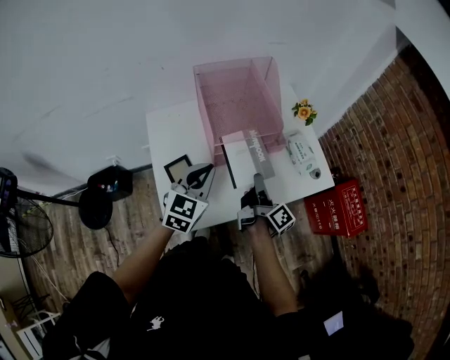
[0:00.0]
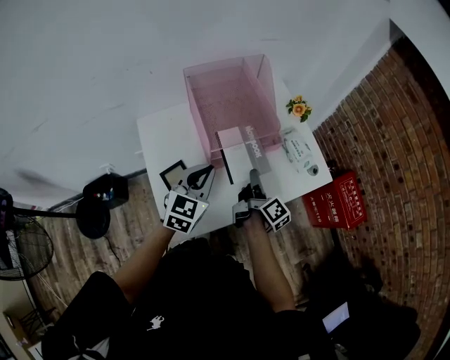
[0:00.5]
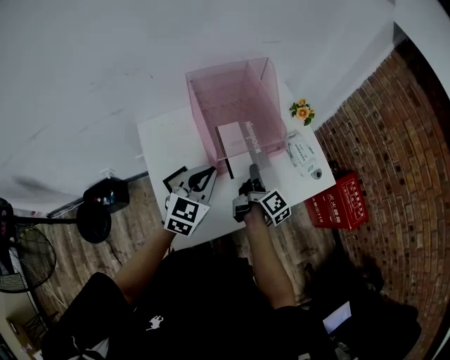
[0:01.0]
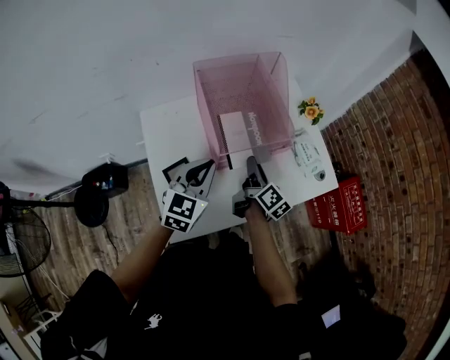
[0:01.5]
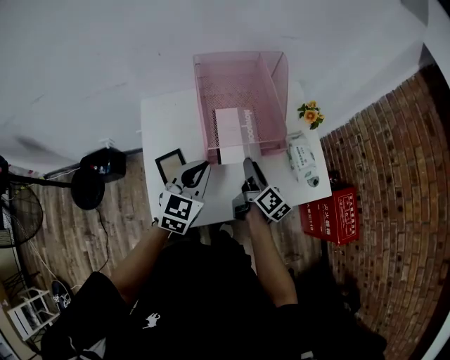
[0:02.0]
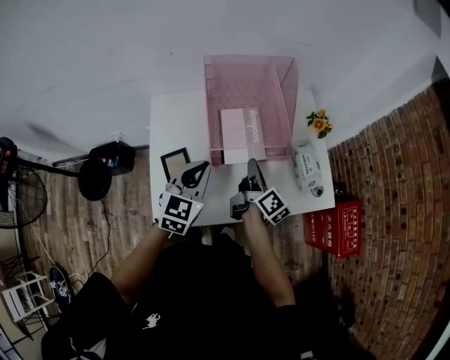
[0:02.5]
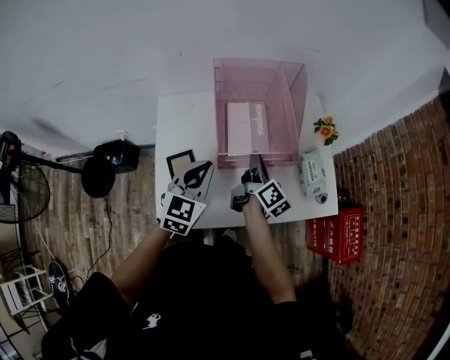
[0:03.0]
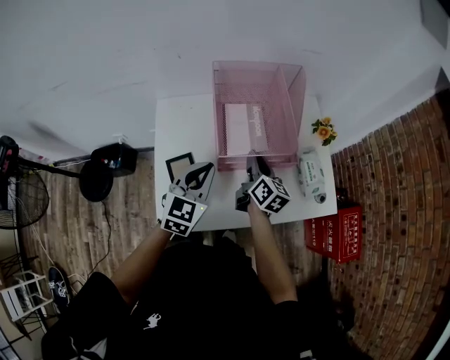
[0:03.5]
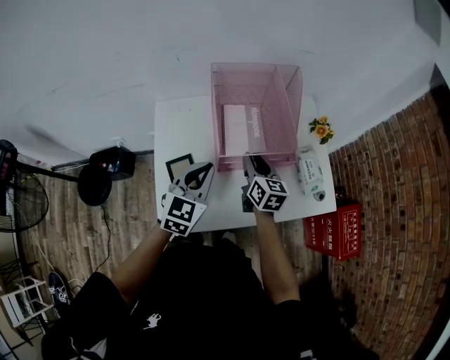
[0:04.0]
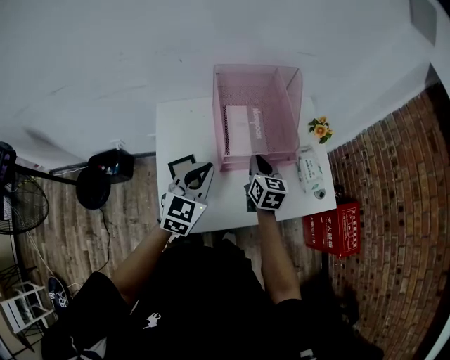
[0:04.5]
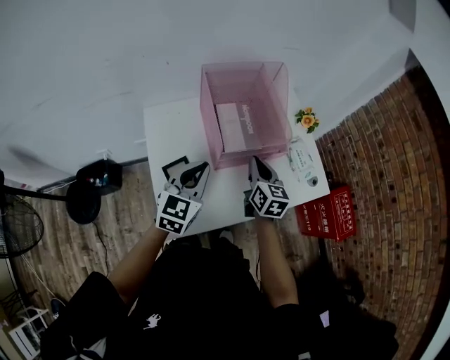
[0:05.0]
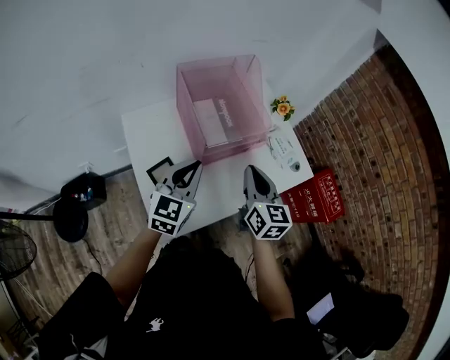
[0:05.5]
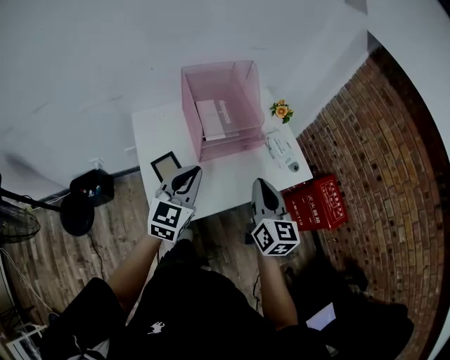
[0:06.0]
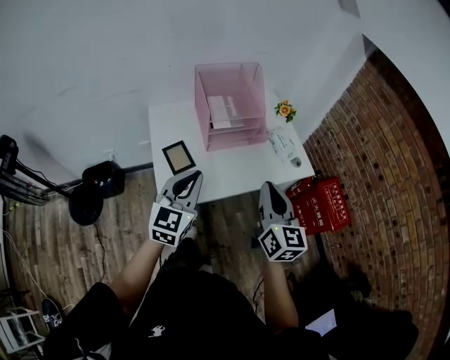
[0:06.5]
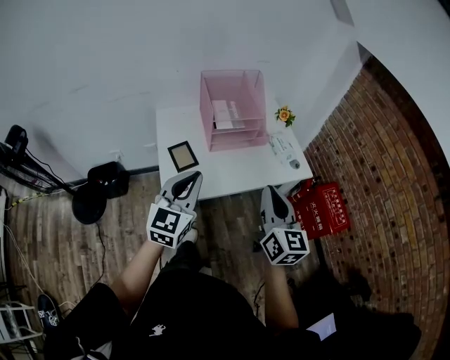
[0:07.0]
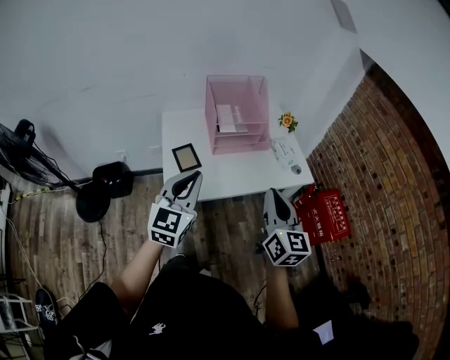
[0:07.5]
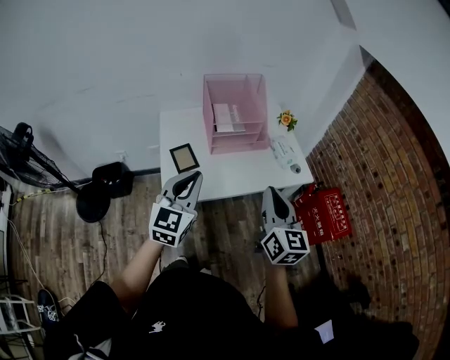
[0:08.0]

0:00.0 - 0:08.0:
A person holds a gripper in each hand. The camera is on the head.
0:00.0 - 0:02.0: The right gripper is displaced forward by some 5 cm, rotates roughly 30 degrees, and opens its fingers.
0:02.0 - 0:04.0: The right gripper ends up about 5 cm from where it was, swivels about 40 degrees, and closes, then reopens.
0:04.0 - 0:06.0: The right gripper shifts about 25 cm backward and upward, swivels roughly 20 degrees, and closes up; the left gripper travels backward and upward by some 10 cm.
0:06.0 - 0:08.0: Both grippers move backward, approximately 15 cm.

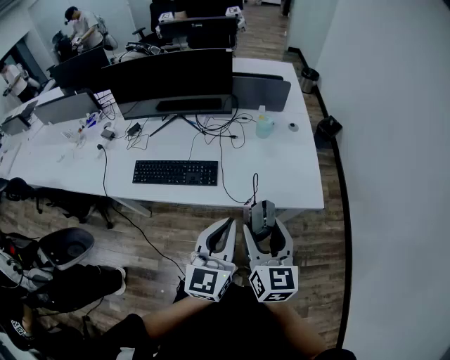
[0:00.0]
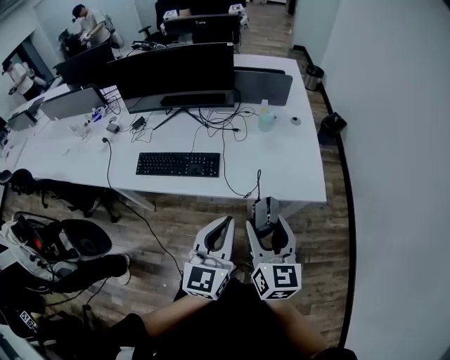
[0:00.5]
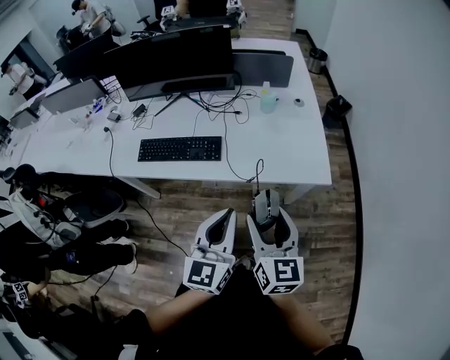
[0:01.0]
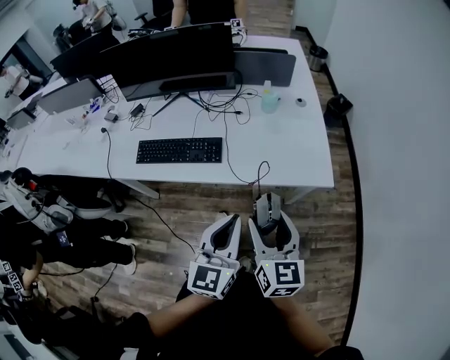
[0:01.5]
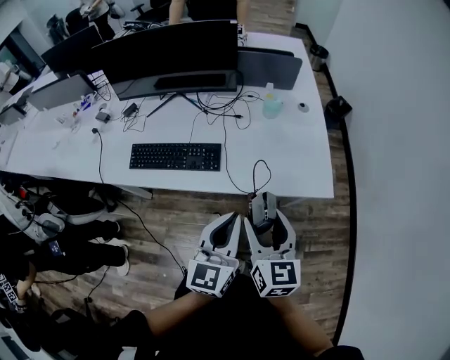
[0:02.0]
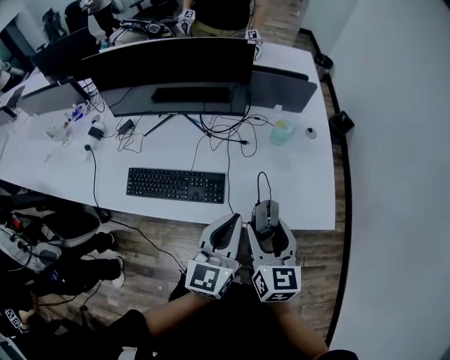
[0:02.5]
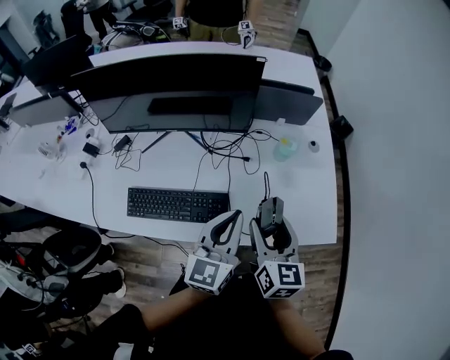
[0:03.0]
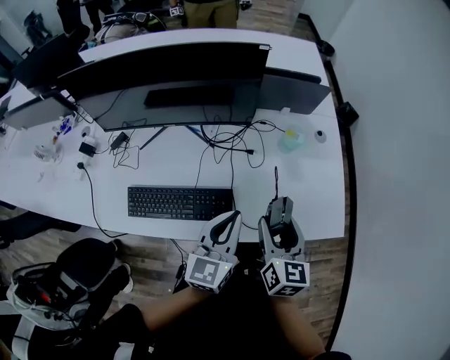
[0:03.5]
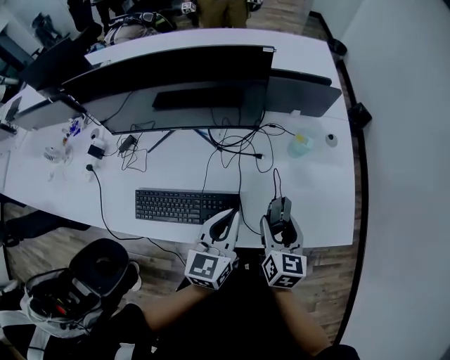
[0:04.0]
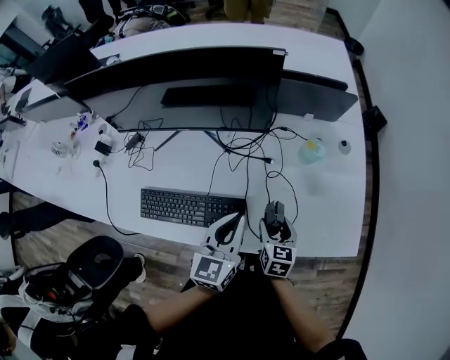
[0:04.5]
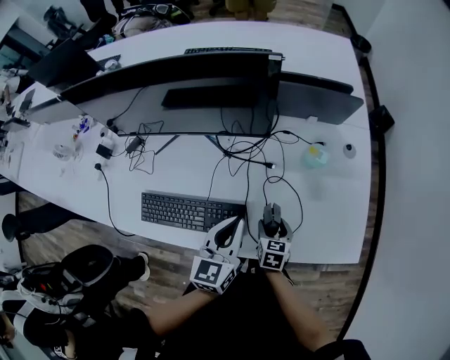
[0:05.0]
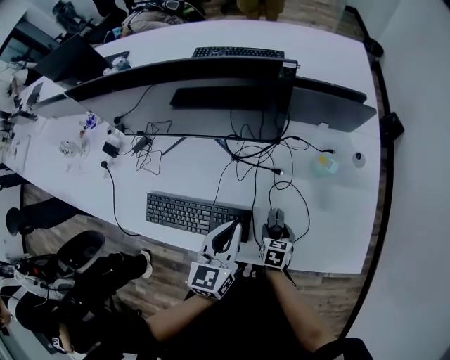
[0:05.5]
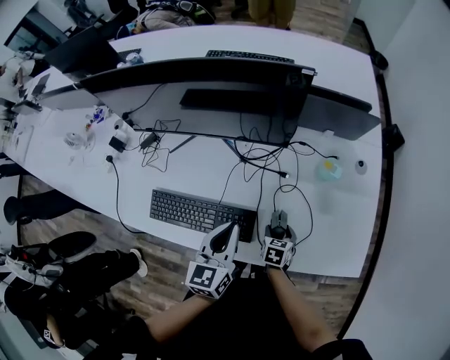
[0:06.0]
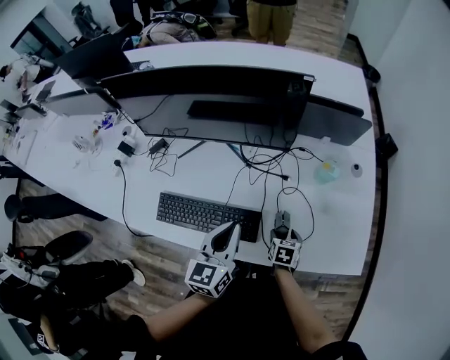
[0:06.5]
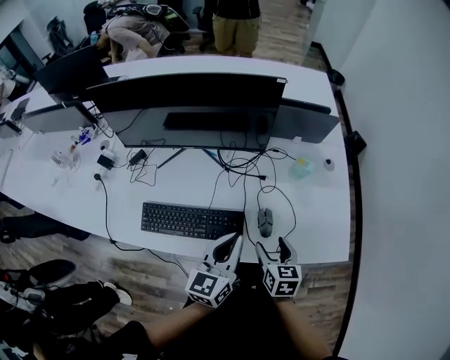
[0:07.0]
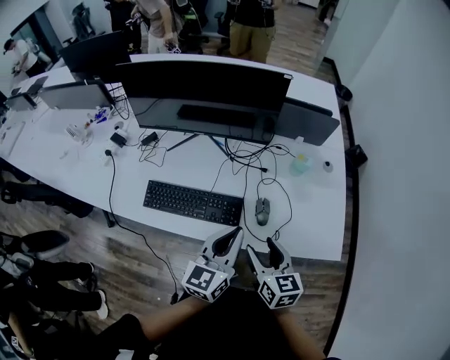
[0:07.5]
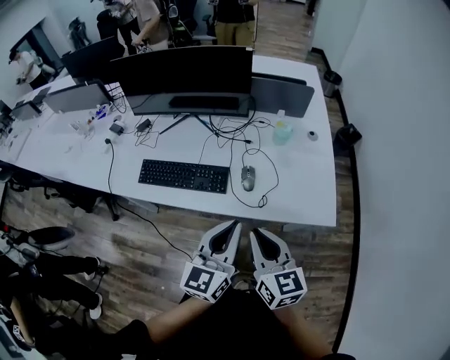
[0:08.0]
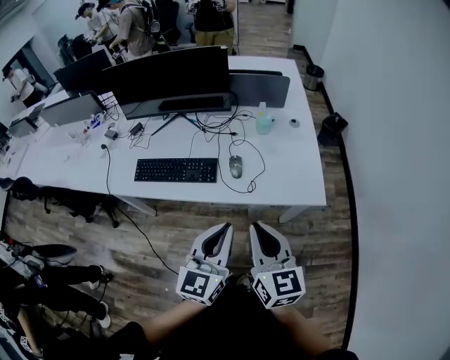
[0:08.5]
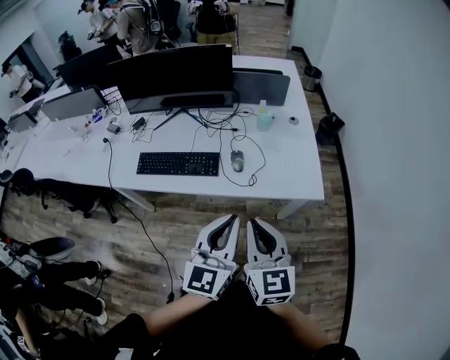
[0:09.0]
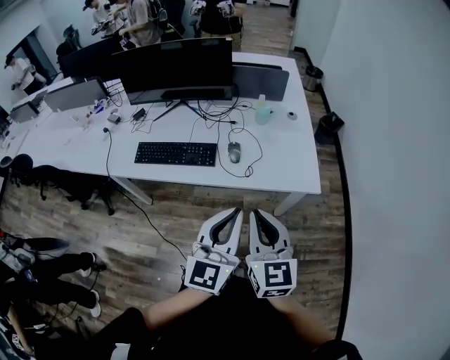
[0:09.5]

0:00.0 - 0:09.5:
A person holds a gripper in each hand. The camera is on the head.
0:00.0 - 0:02.0: The right gripper changes place by some 5 cm; the left gripper moves about 5 cm.
0:02.0 - 0:04.0: The left gripper moves forward and to the left, some 30 cm, while the right gripper goes approximately 25 cm forward and downward.
0:04.0 - 0:05.5: The right gripper moves downward, some 20 cm, and rotates some 30 degrees, while the left gripper ends up about 5 cm from where it was.
0:05.5 - 0:07.5: The right gripper shifts roughly 30 cm upward and backward, and tilts its fingers some 30 degrees upward. The left gripper goes some 15 cm backward and upward.
0:07.5 - 0:09.5: The right gripper moves backward, upward and to the right, approximately 30 cm, swivels approximately 30 degrees, and closes up; the left gripper is displaced backward and to the right by some 30 cm.

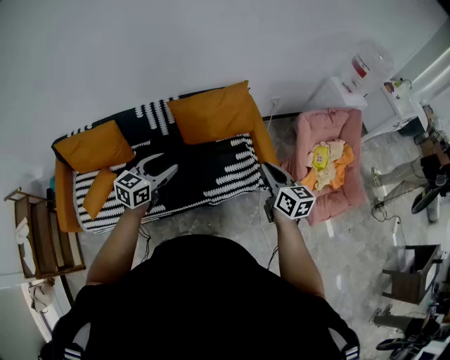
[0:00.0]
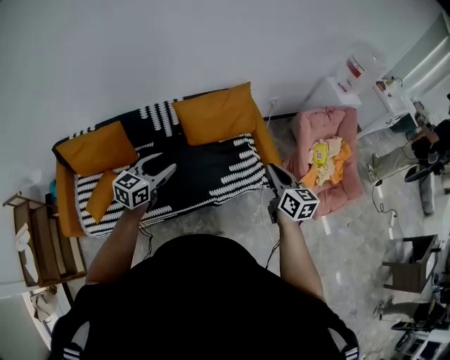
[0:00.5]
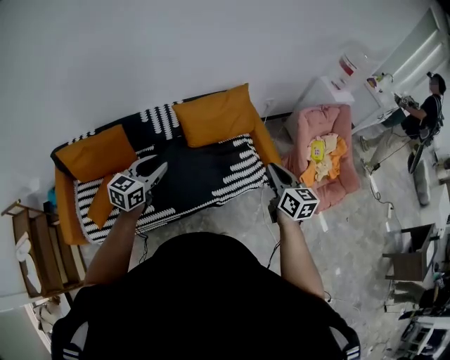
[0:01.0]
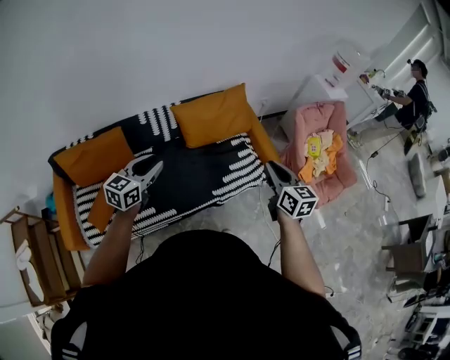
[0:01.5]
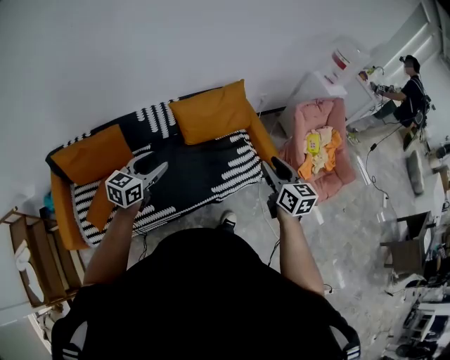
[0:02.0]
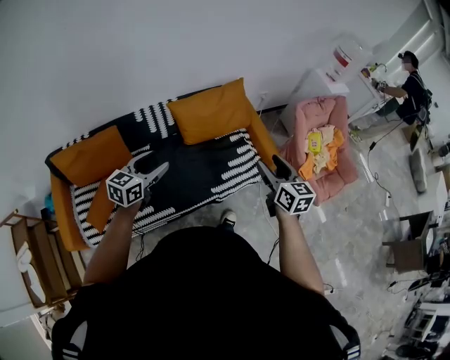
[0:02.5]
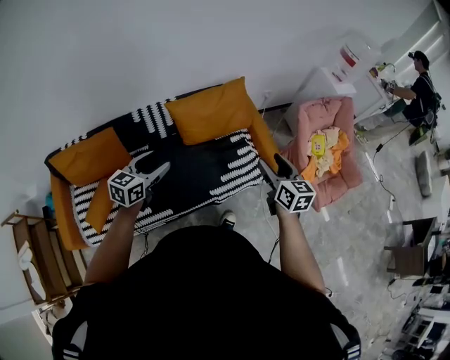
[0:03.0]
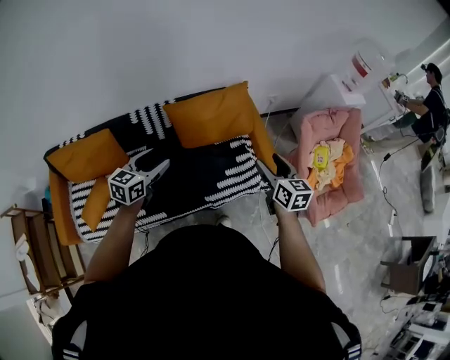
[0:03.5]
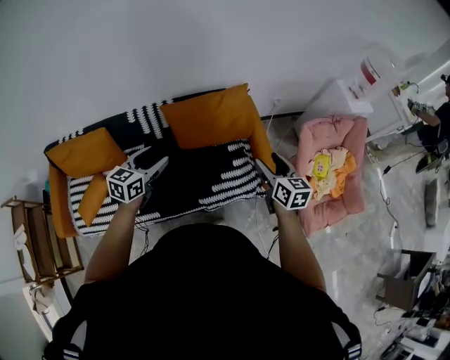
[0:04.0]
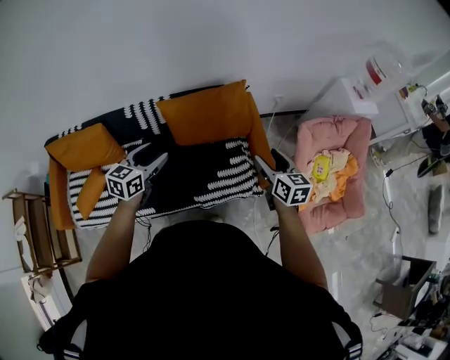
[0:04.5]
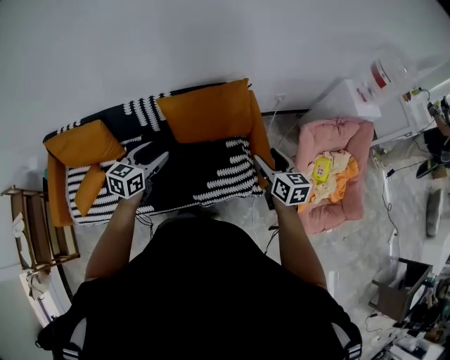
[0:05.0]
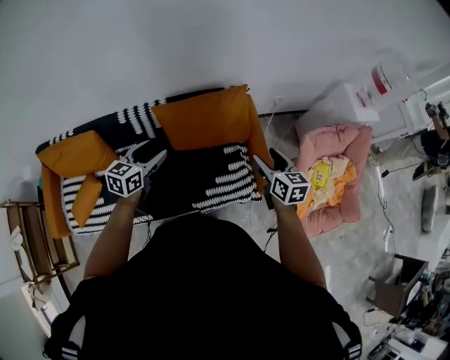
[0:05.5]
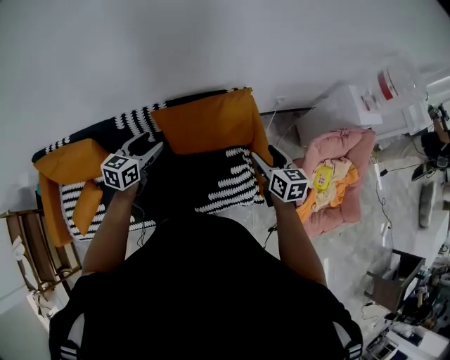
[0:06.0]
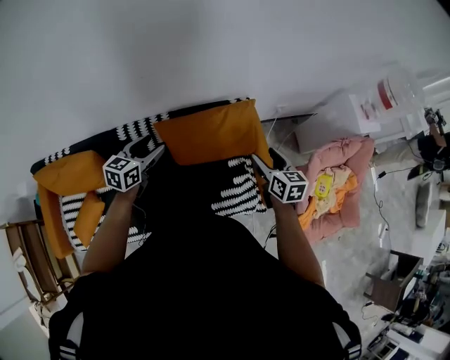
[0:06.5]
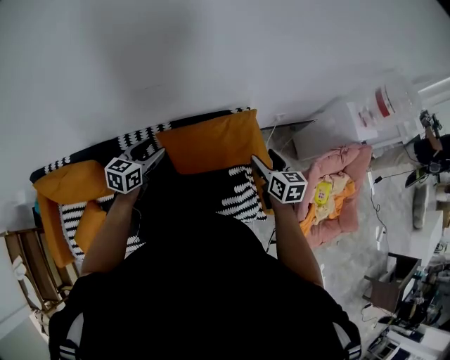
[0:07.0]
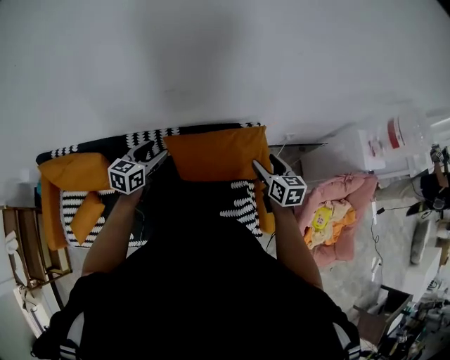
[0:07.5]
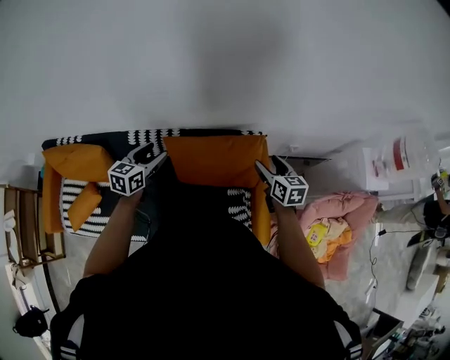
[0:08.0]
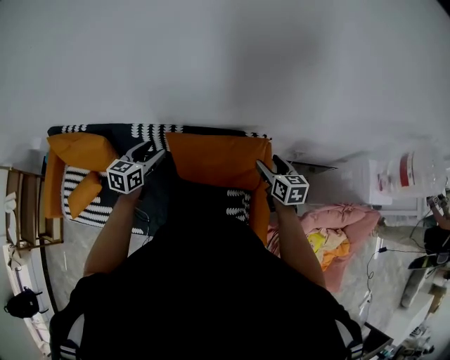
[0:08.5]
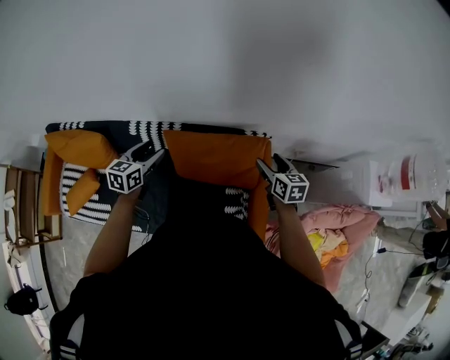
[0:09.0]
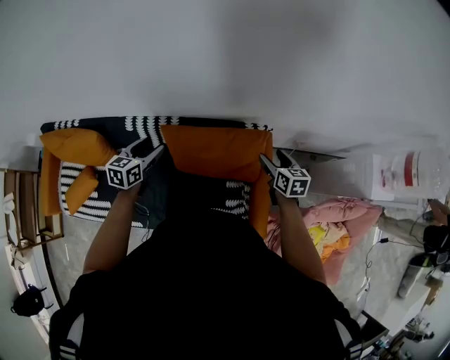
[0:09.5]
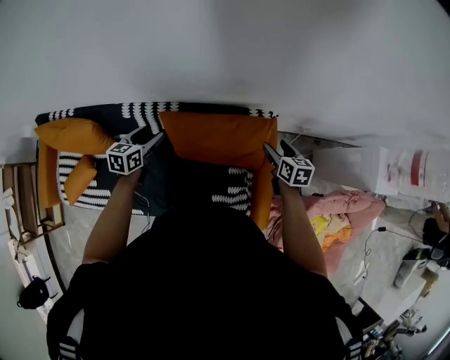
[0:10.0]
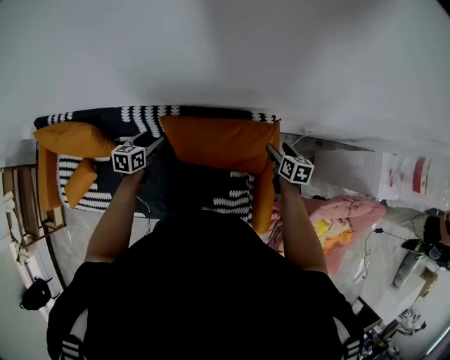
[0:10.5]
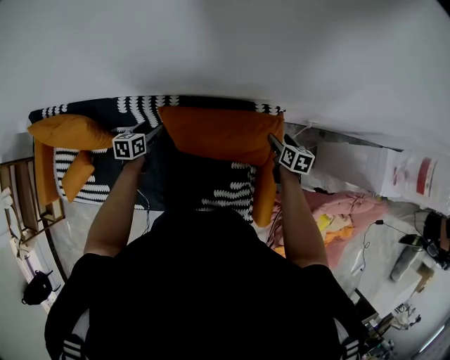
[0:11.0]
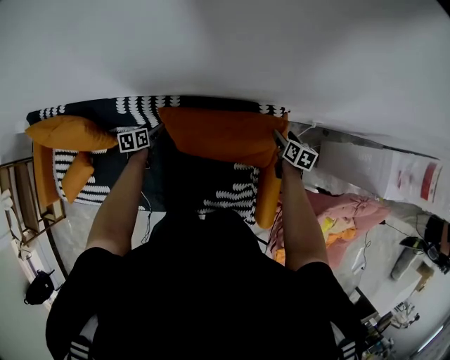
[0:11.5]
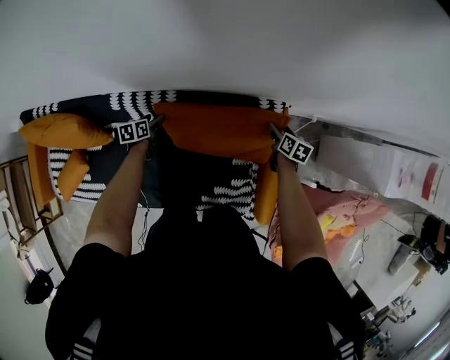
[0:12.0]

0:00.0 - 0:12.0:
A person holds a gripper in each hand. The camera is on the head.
0:00.0 - 0:02.0: Both grippers move to the left and backward, about 15 cm. The right gripper opens its fingers.
0:02.0 - 0:04.0: Both grippers travel together forward and to the right, about 25 cm. The right gripper opens.
0:04.0 - 0:06.0: The two grippers go some 15 cm forward.
0:06.0 - 0:08.0: The left gripper heads forward, covering approximately 10 cm; the right gripper moves forward, about 15 cm.
0:08.0 - 0:10.0: Both grippers travel together downward and forward, some 15 cm.
0:10.0 - 0:12.0: The right gripper is displaced downward and forward by some 20 cm, while the left gripper heads downward, covering some 25 cm, and swivels about 30 degrees.
